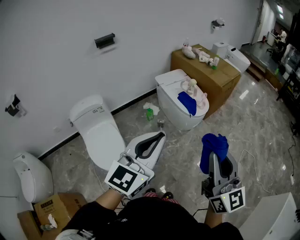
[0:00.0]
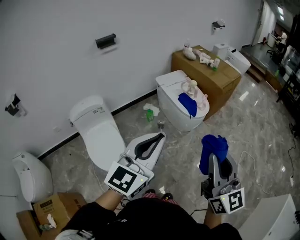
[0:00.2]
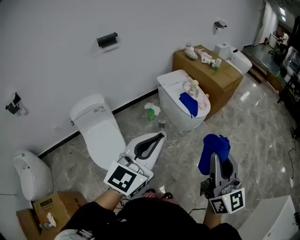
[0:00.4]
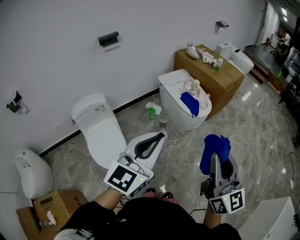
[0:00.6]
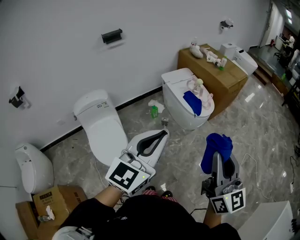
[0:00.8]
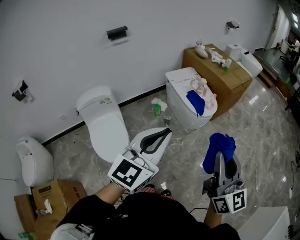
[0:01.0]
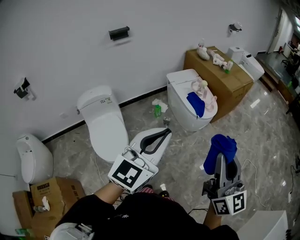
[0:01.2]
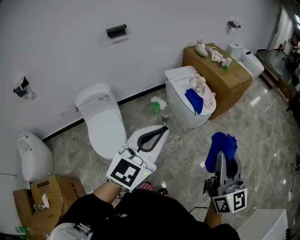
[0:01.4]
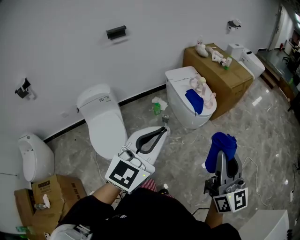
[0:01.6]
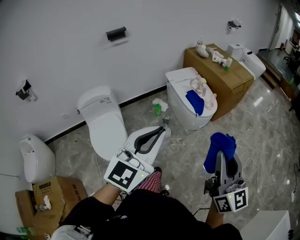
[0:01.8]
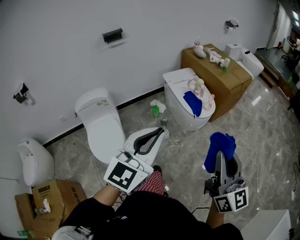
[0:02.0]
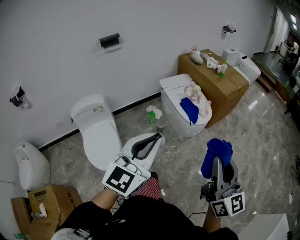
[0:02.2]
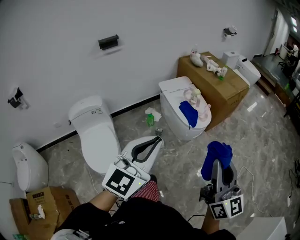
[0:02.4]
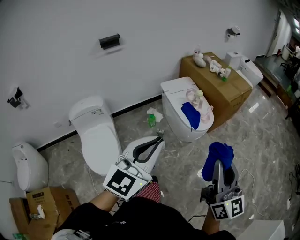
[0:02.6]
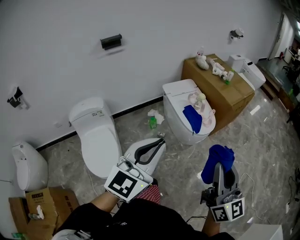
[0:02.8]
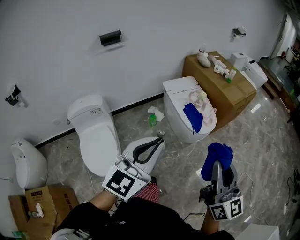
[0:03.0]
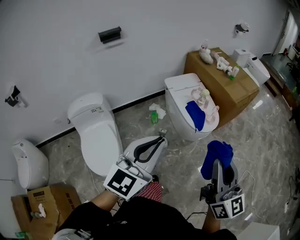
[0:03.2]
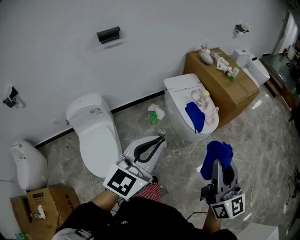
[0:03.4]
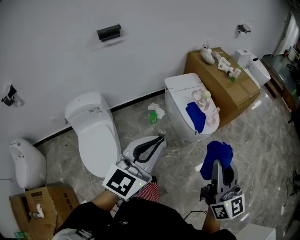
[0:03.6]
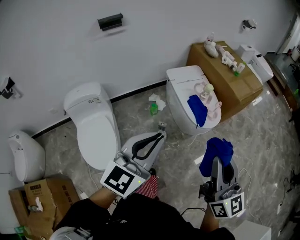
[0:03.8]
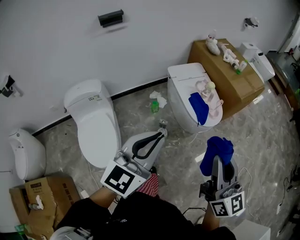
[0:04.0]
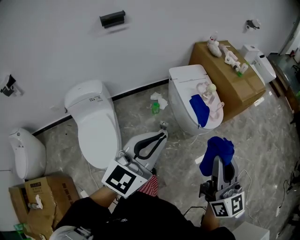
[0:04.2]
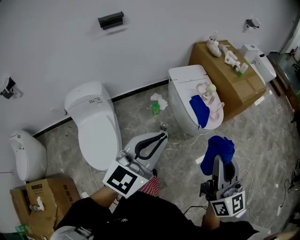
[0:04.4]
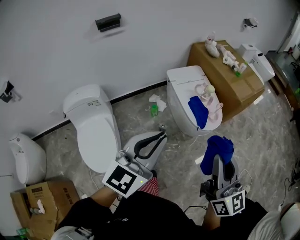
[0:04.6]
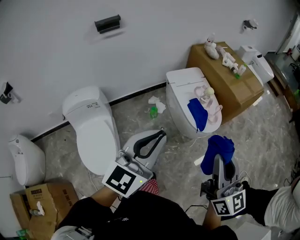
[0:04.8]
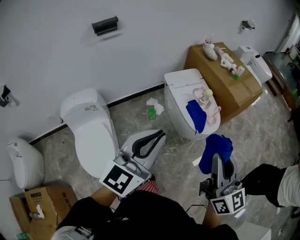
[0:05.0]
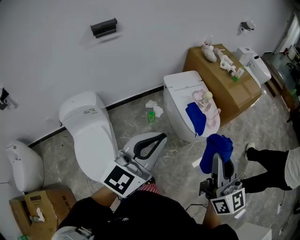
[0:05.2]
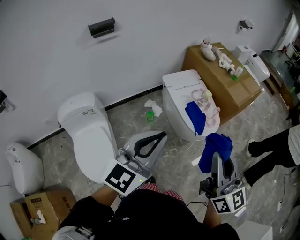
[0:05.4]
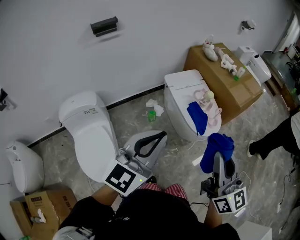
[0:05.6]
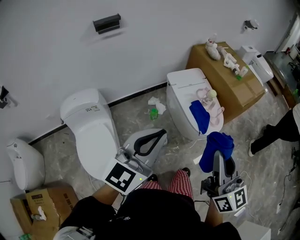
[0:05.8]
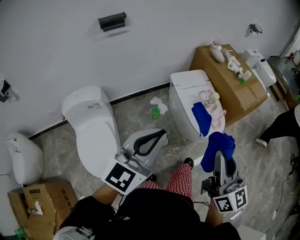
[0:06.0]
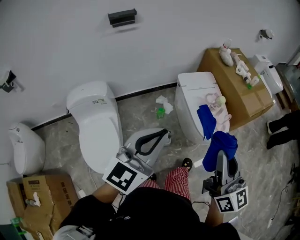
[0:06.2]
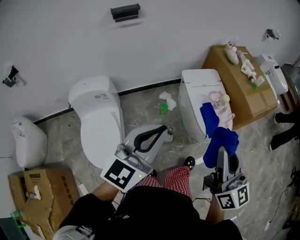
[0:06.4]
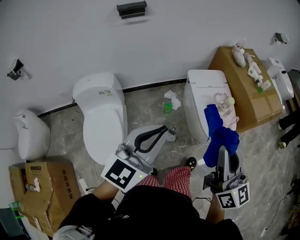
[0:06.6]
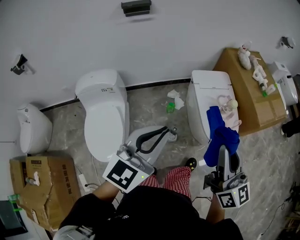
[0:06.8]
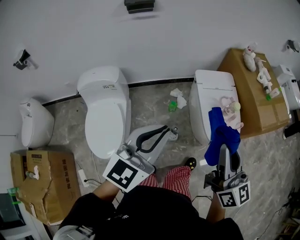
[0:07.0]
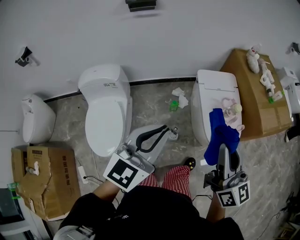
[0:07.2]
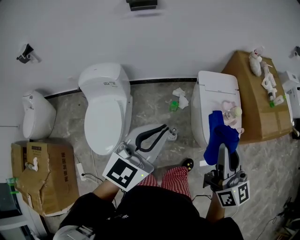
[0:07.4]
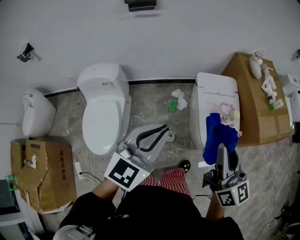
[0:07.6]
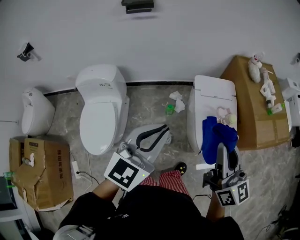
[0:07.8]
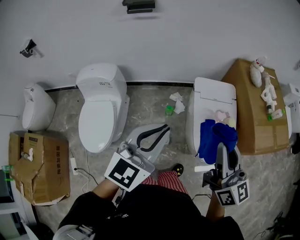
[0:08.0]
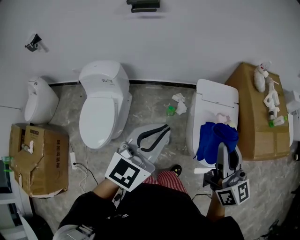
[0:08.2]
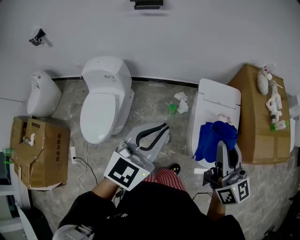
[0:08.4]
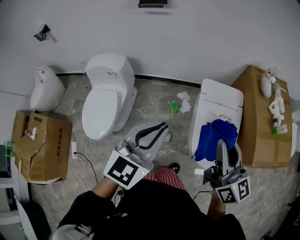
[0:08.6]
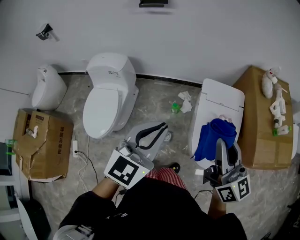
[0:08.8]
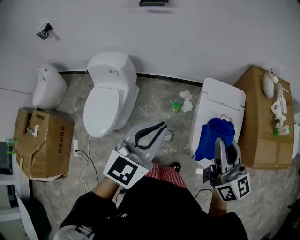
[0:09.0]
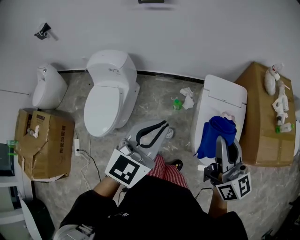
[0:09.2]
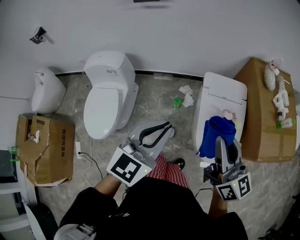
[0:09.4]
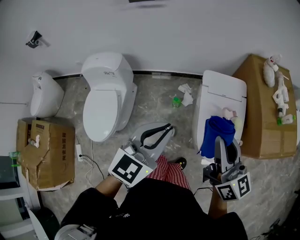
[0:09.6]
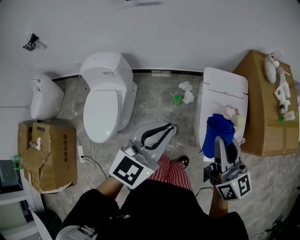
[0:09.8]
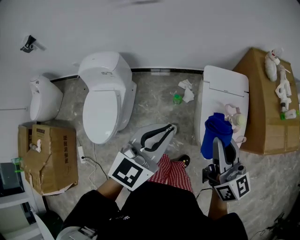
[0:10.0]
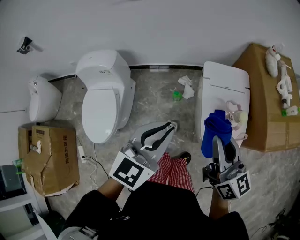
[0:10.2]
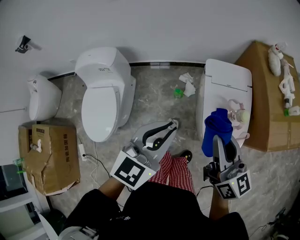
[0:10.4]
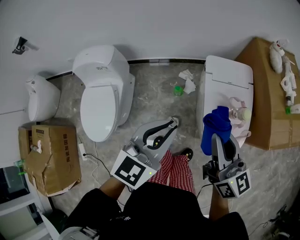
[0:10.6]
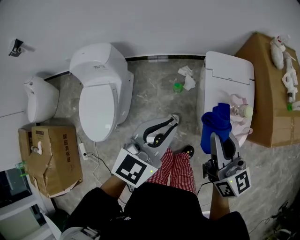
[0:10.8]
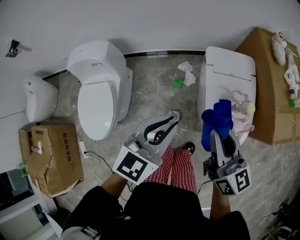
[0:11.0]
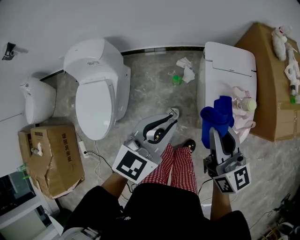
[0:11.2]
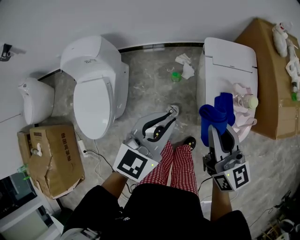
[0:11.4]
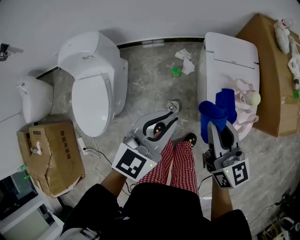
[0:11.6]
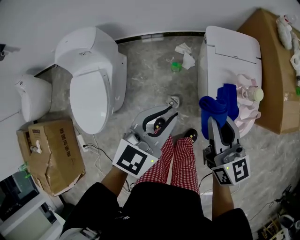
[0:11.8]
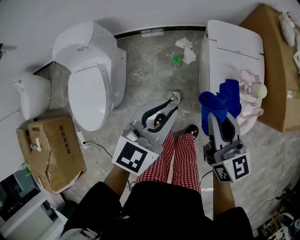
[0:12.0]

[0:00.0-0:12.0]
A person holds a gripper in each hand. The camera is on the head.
0:00.0 to 0:01.6: The right gripper heads to the right, covering some 10 cm. Meanwhile the left gripper changes place by some 5 cm.
0:01.6 to 0:03.0: The grippers both shift forward by approximately 15 cm.
0:03.0 to 0:04.4: The grippers both shift forward by some 10 cm.
0:04.4 to 0:06.0: The right gripper heads forward, covering approximately 5 cm, while the left gripper is displaced forward and to the left by approximately 10 cm.
0:06.0 to 0:07.6: The left gripper moves forward and to the right, roughly 10 cm, and turns by roughly 20 degrees; the right gripper is displaced forward by about 15 cm, and swivels about 20 degrees.
0:07.6 to 0:09.0: The left gripper heads to the right, covering some 10 cm. Meanwhile the right gripper is displaced forward and to the right by approximately 10 cm.
0:09.0 to 0:10.4: The grippers both shift downward by some 5 cm.
0:10.4 to 0:12.0: The grippers both shift downward by approximately 15 cm.

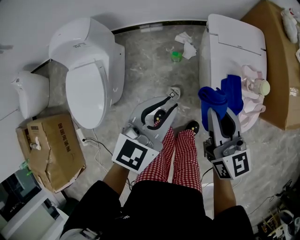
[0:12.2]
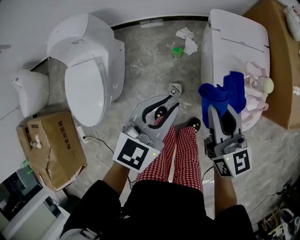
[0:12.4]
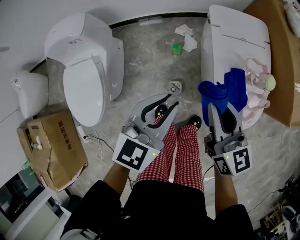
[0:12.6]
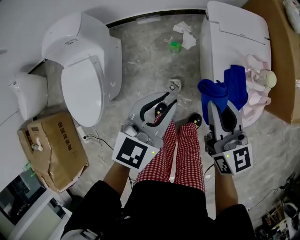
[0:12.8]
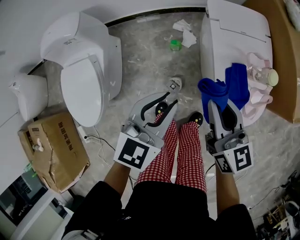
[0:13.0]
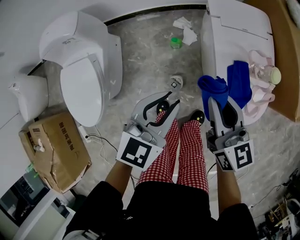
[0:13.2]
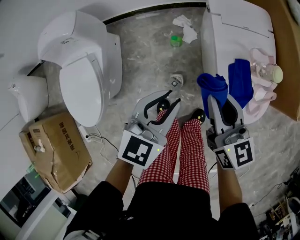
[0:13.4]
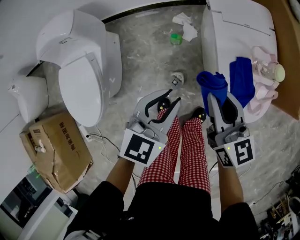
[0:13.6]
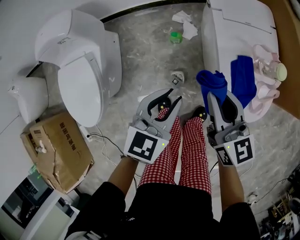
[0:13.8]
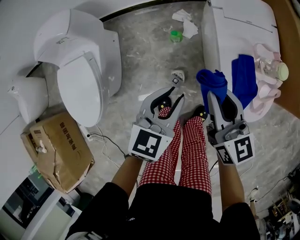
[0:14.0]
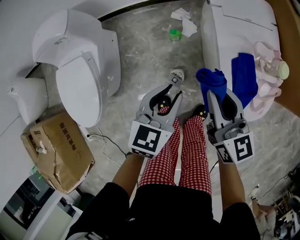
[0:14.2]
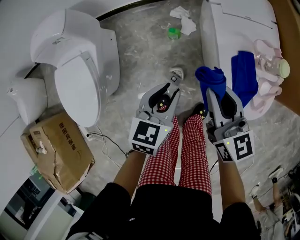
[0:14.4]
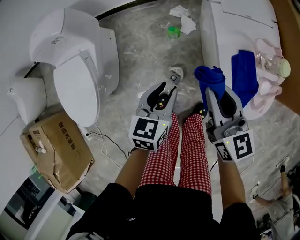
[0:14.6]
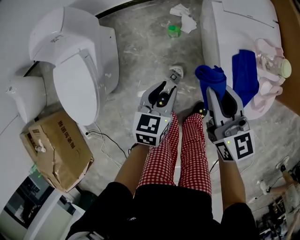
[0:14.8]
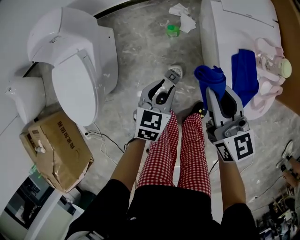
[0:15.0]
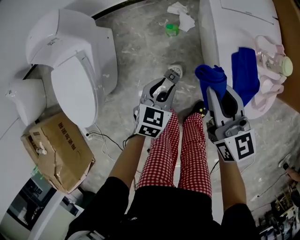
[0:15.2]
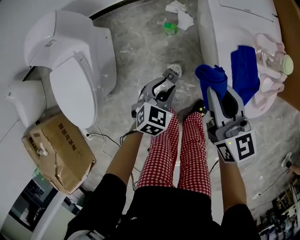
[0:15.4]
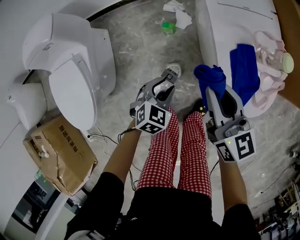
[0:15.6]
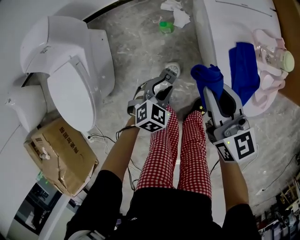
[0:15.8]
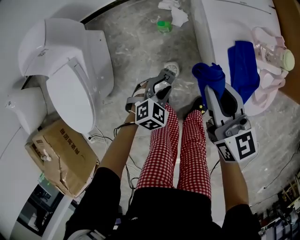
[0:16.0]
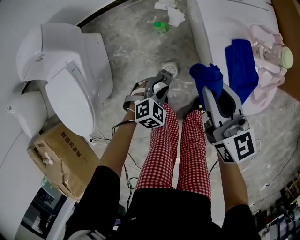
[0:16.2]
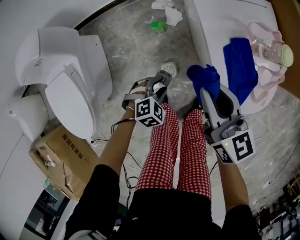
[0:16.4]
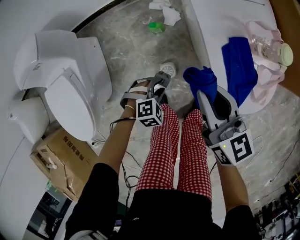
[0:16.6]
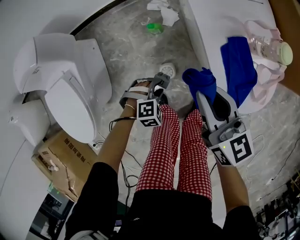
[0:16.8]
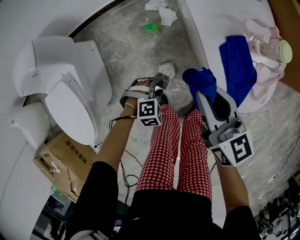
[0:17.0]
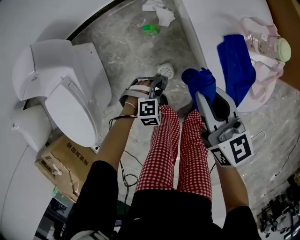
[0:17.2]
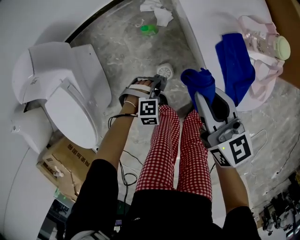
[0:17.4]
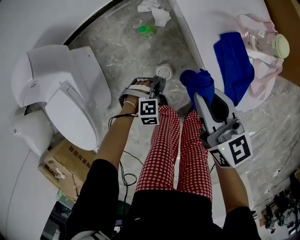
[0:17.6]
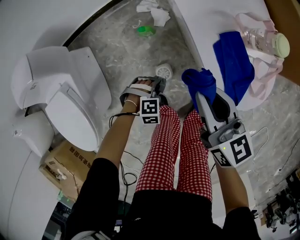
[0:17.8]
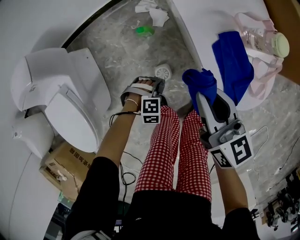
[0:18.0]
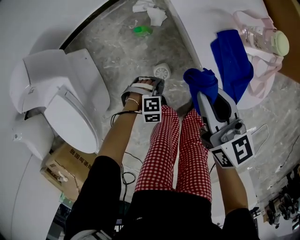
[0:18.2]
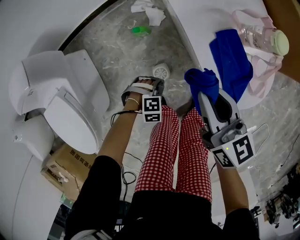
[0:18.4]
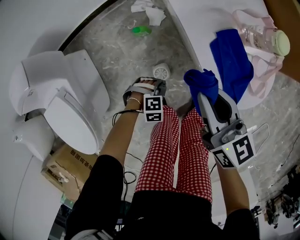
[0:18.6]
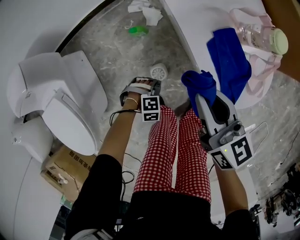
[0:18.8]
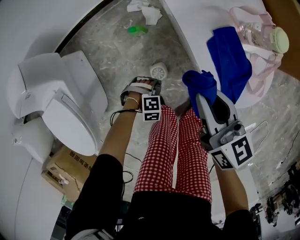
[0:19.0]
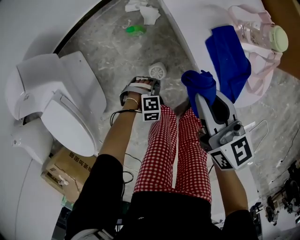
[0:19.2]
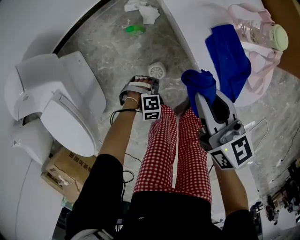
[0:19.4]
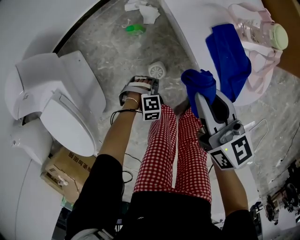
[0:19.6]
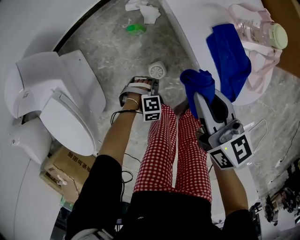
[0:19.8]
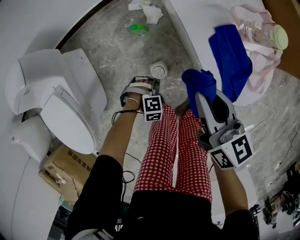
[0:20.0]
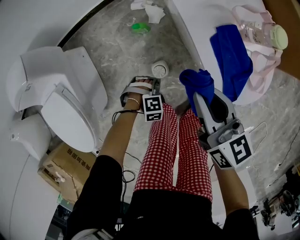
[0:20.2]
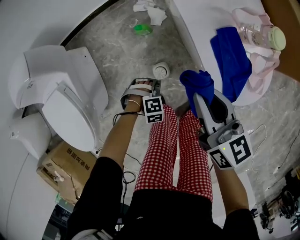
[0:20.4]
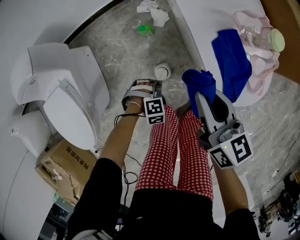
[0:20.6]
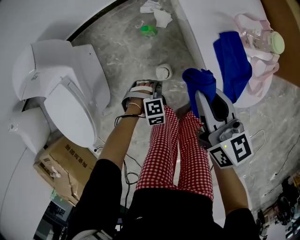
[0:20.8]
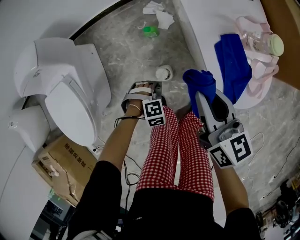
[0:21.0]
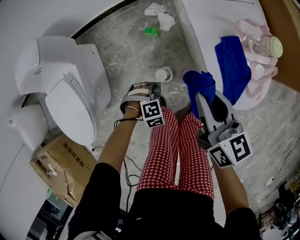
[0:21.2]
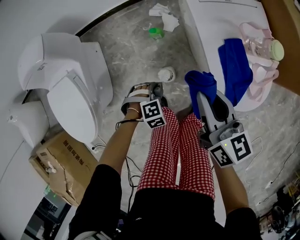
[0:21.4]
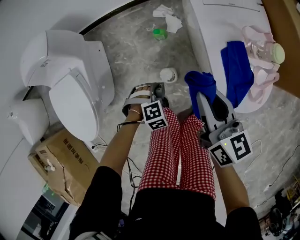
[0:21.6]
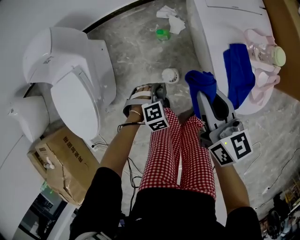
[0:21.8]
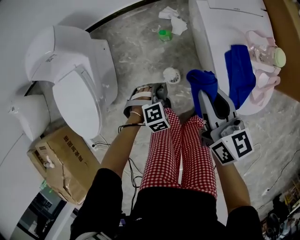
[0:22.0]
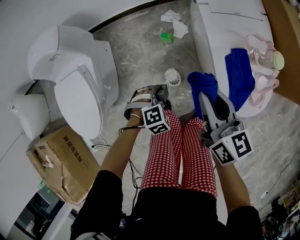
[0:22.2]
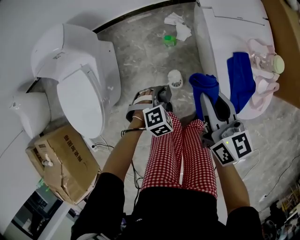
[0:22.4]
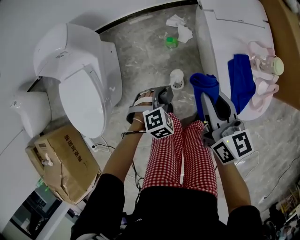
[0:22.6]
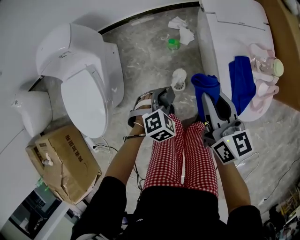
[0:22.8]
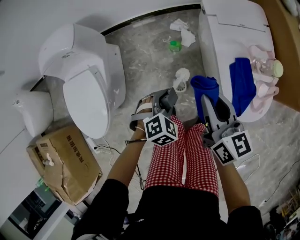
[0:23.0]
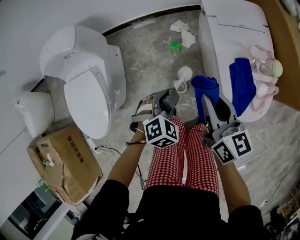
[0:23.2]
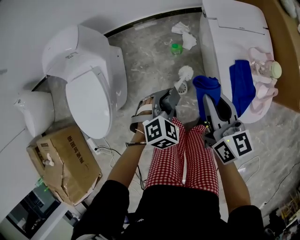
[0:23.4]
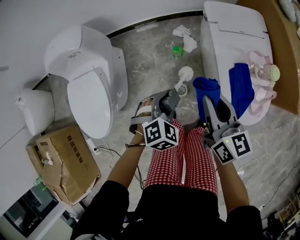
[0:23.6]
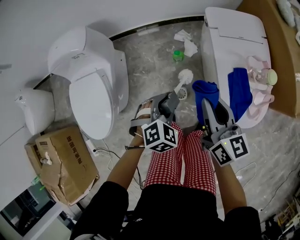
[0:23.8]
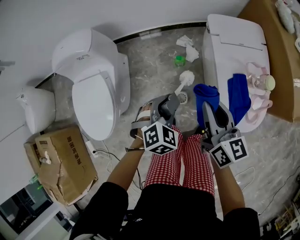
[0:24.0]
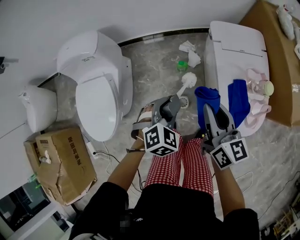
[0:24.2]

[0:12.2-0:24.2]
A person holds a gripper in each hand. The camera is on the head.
0:12.2 to 0:13.8: Both grippers travel together downward, about 10 cm.
0:13.8 to 0:15.2: The left gripper goes some 15 cm downward.
0:15.2 to 0:16.6: The left gripper shifts about 15 cm downward, and rolls clockwise, seen from behind, by some 50 degrees.
0:16.6 to 0:18.2: The left gripper shifts approximately 5 cm downward, and changes its angle by about 30 degrees.
0:18.2 to 0:19.8: The grippers stay close to where they were, moving slightly.
0:19.8 to 0:21.2: The left gripper moves upward, some 10 cm, and changes its angle by roughly 20 degrees. The right gripper changes place by roughly 5 cm.
0:21.2 to 0:22.6: The left gripper travels upward by roughly 10 cm, and turns by roughly 20 degrees; the right gripper ends up approximately 5 cm from where it was.
0:22.6 to 0:24.2: The left gripper goes roughly 15 cm upward, and swivels some 20 degrees, while the right gripper moves upward, approximately 10 cm.
